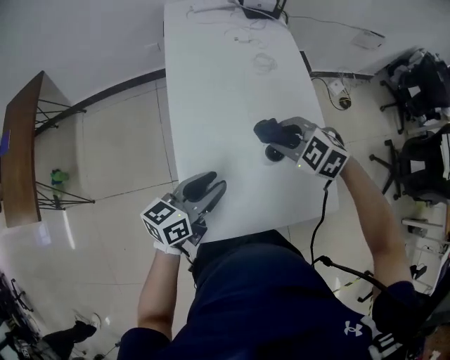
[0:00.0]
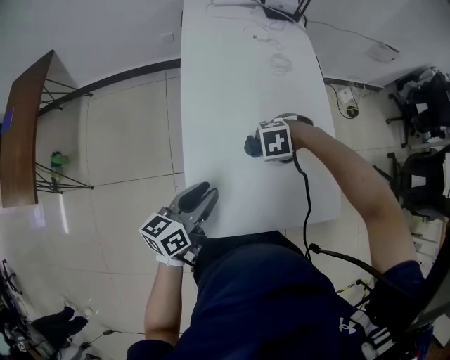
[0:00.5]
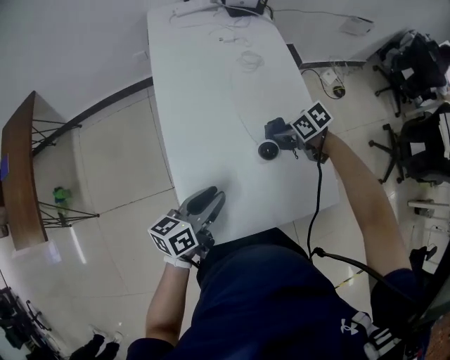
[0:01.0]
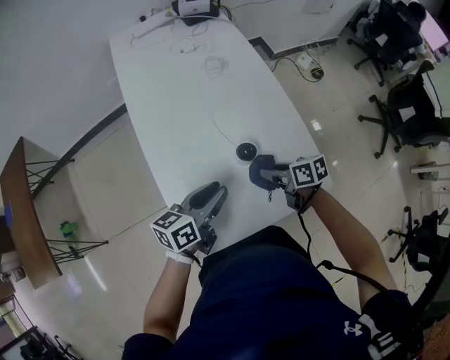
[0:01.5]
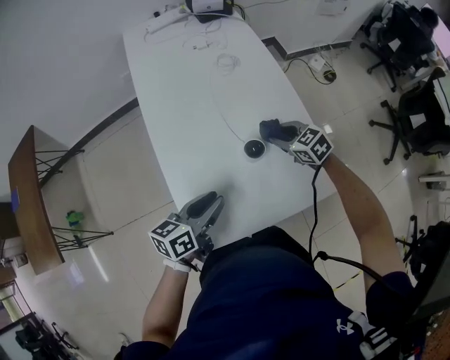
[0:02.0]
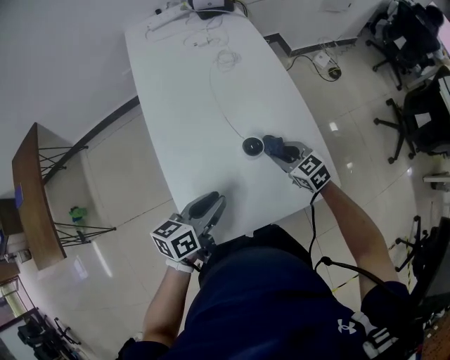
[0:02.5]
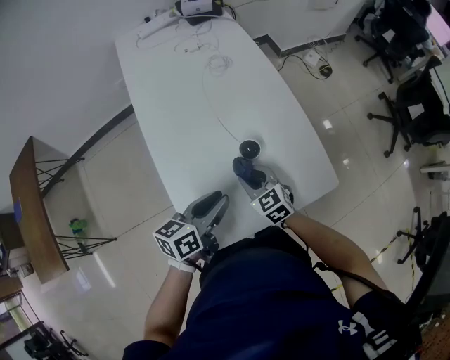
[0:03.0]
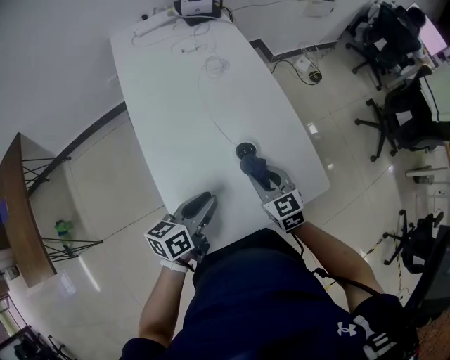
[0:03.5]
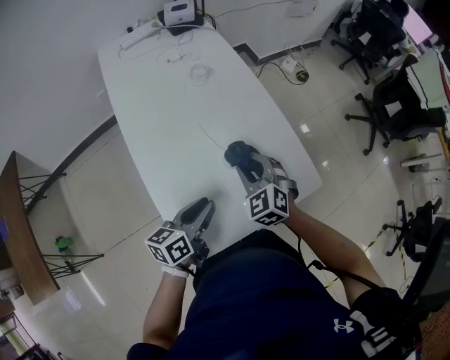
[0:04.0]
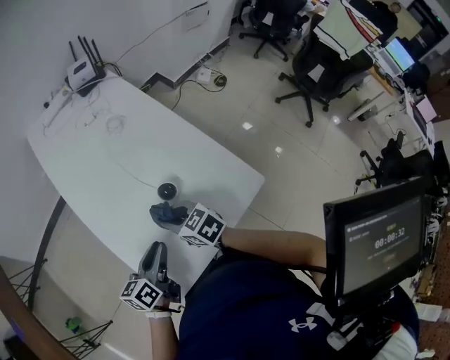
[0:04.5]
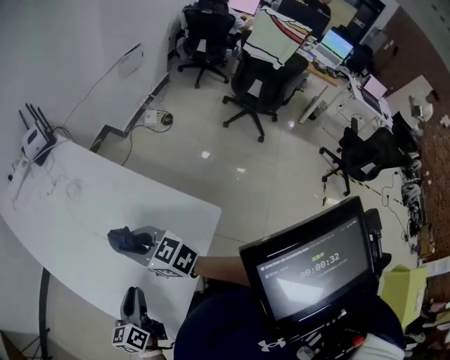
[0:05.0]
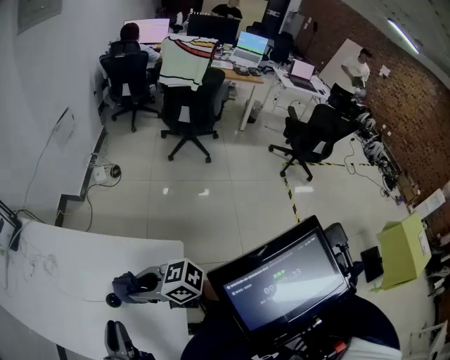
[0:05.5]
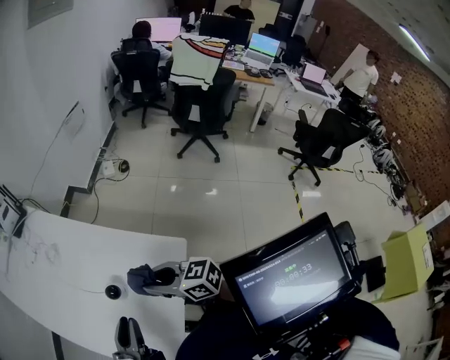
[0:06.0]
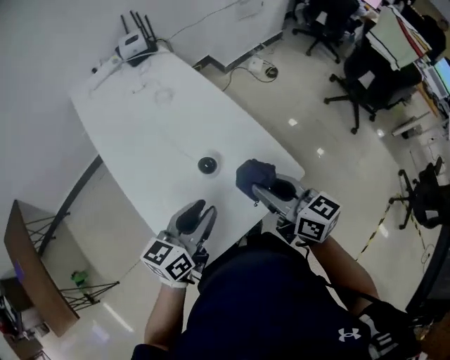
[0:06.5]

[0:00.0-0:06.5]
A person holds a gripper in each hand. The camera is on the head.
0:00.0 to 0:02.0: The right gripper goes roughly 10 cm downward, and changes its angle by roughly 40 degrees. The left gripper ends up about 5 cm from where it was.
0:02.0 to 0:04.5: The right gripper goes left and right, approximately 10 cm each way, reversing 2 times, and swivels about 20 degrees.
0:04.5 to 0:06.5: The right gripper is displaced to the right and upward by approximately 25 cm, and swivels about 30 degrees. Meanwhile the left gripper shifts about 15 cm upward and to the right, and swivels approximately 20 degrees.

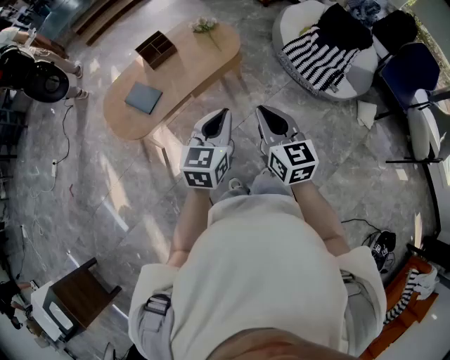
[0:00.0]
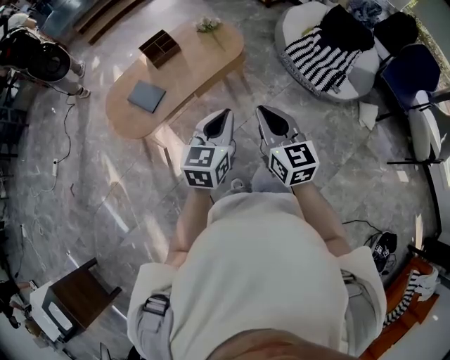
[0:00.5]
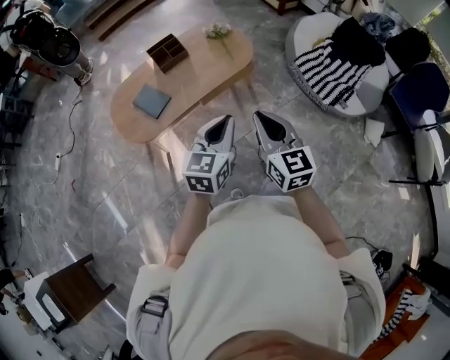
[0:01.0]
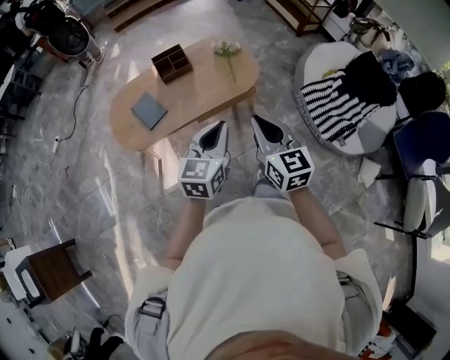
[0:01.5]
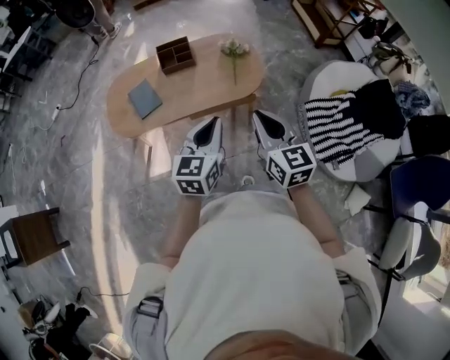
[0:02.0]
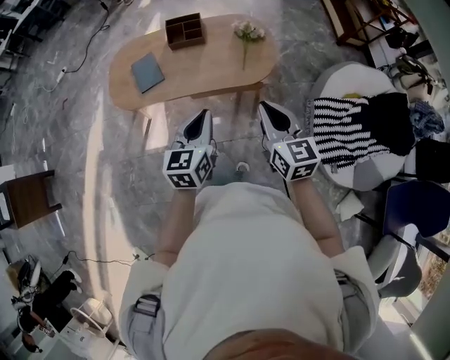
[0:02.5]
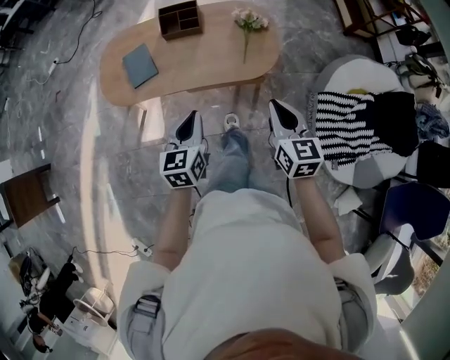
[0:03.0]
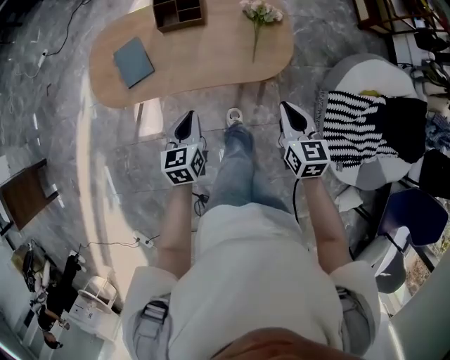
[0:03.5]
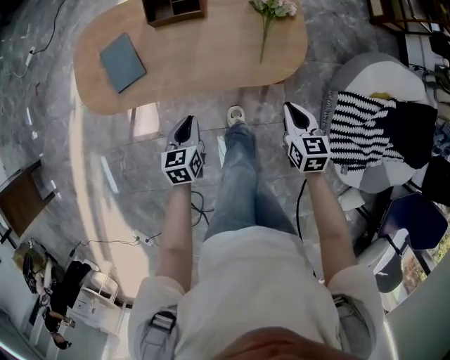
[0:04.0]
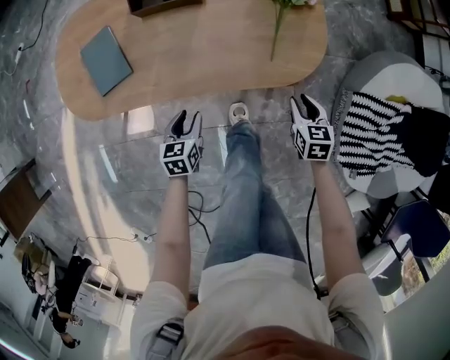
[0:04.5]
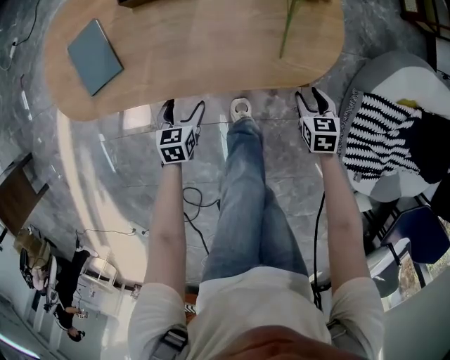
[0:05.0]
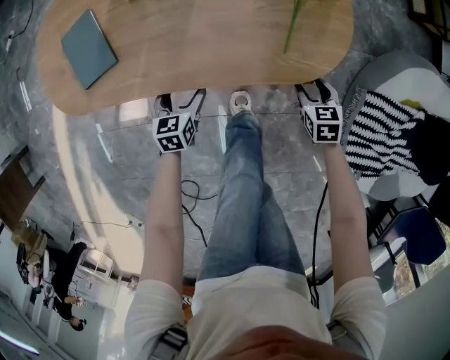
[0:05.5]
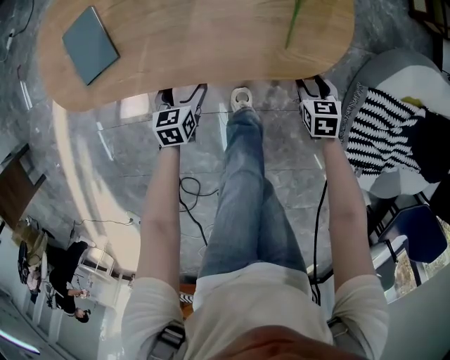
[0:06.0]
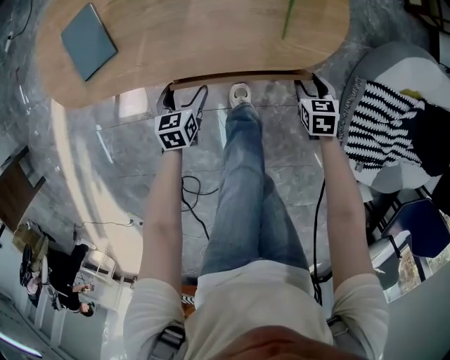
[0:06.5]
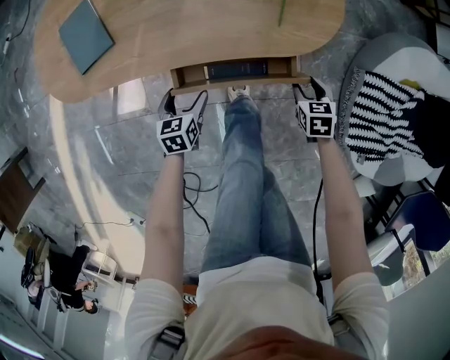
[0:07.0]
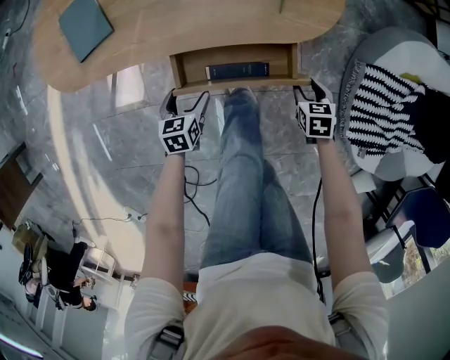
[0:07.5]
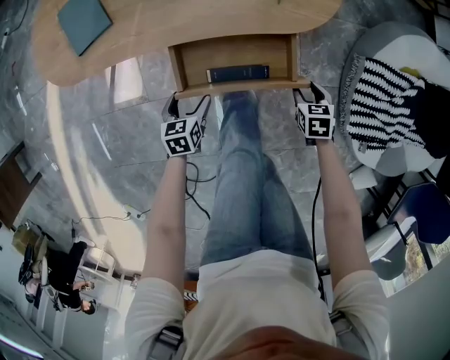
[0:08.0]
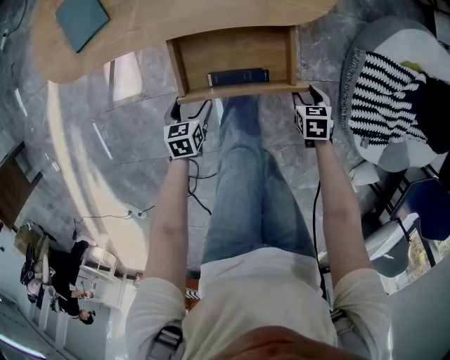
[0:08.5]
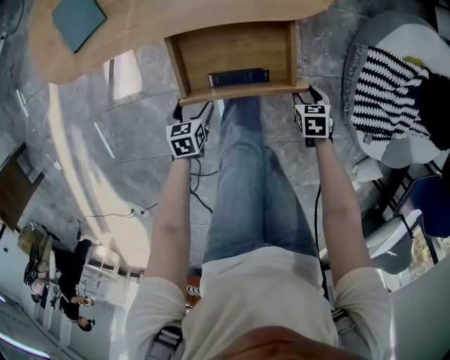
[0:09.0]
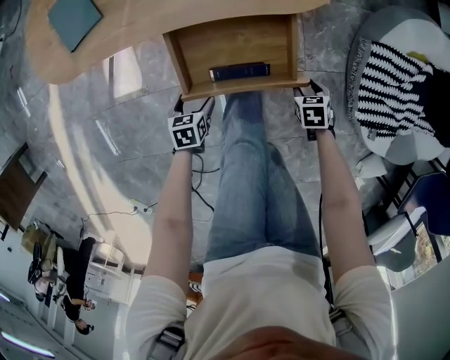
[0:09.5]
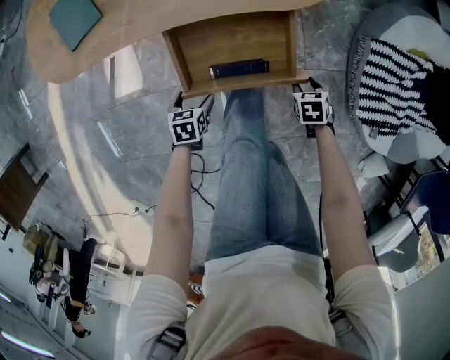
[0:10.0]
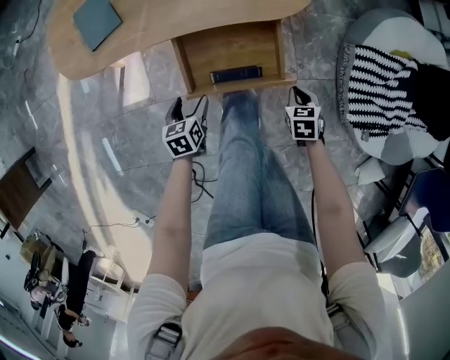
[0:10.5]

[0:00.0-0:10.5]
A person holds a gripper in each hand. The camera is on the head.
0:00.0 to 0:02.0: The left gripper ends up approximately 20 cm from where it was, and turns by roughly 30 degrees, while the right gripper moves some 25 cm, and turns by about 30 degrees.
0:02.0 to 0:04.0: Both grippers move downward and forward, about 40 cm. The right gripper rotates some 30 degrees; the left gripper turns by about 40 degrees.
0:04.0 to 0:06.5: The grippers both shift downward by some 25 cm. The right gripper turns by approximately 20 degrees, and opens its fingers, while the left gripper opens.
0:06.5 to 0:08.5: The grippers both shift backward by approximately 15 cm.
0:08.5 to 0:10.5: Both grippers move upward, approximately 5 cm. The right gripper closes its fingers.

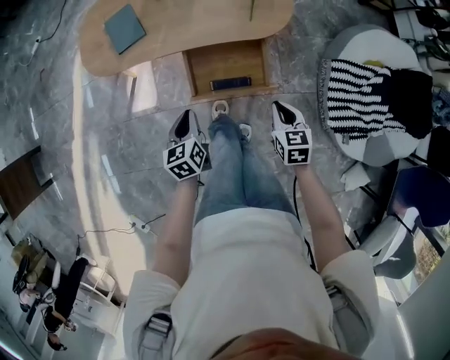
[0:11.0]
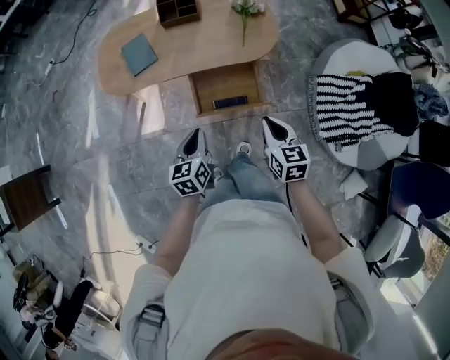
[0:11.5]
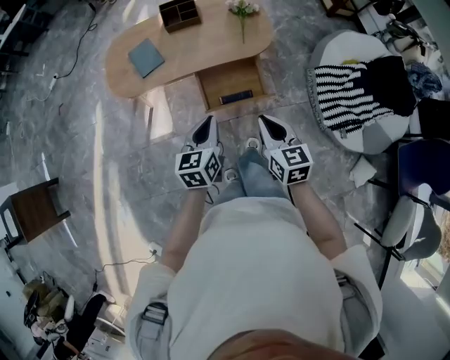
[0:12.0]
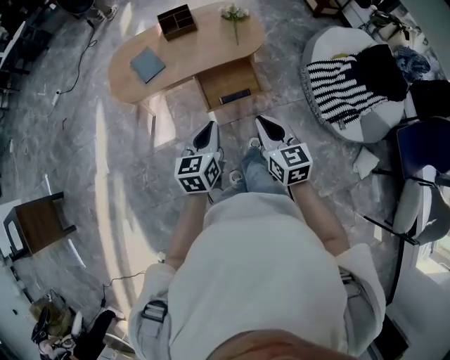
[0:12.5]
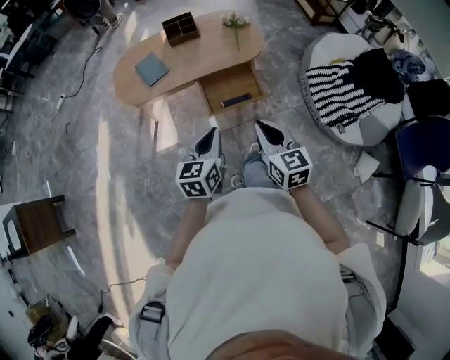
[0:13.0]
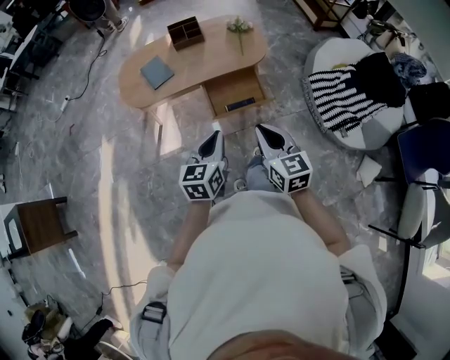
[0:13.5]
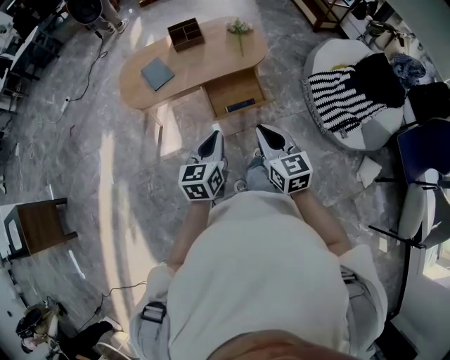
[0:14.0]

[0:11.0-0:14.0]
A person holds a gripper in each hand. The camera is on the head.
0:11.0 to 0:12.5: The left gripper heads upward and backward, covering approximately 30 cm, and swivels roughly 30 degrees. Meanwhile the right gripper is displaced upward, backward and to the left by some 35 cm, and rotates roughly 20 degrees.
0:12.5 to 0:14.0: Both grippers move backward, roughly 5 cm.

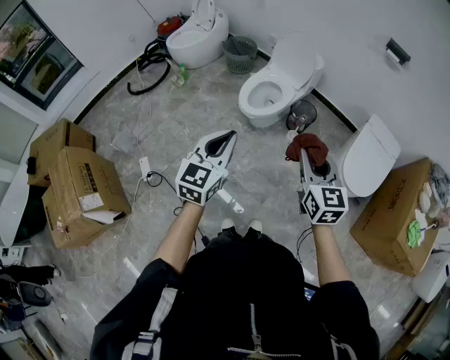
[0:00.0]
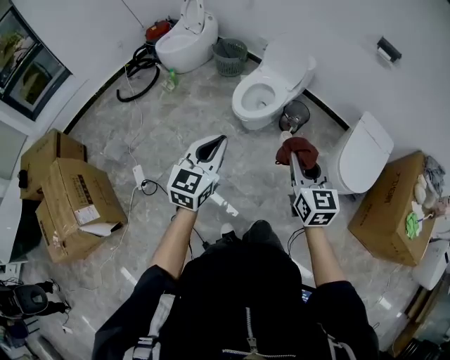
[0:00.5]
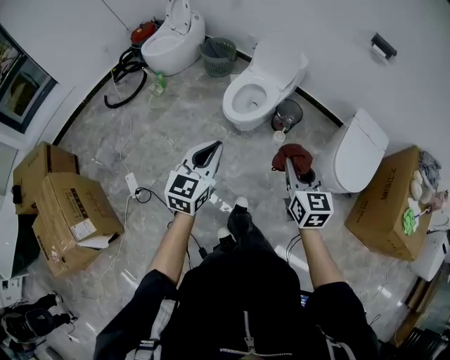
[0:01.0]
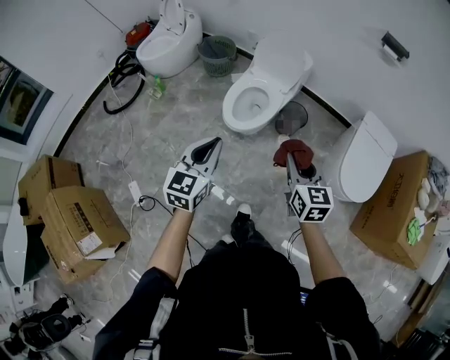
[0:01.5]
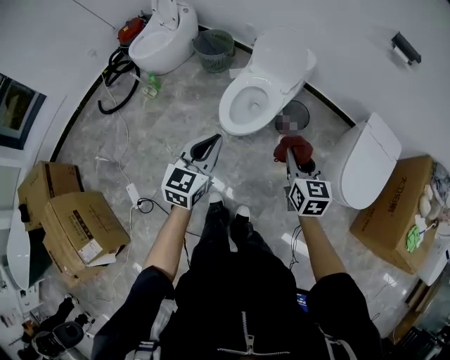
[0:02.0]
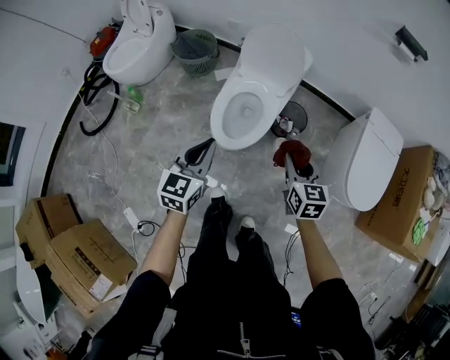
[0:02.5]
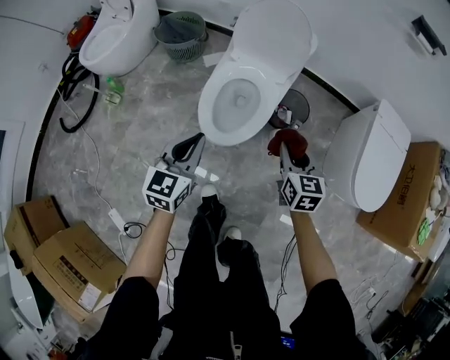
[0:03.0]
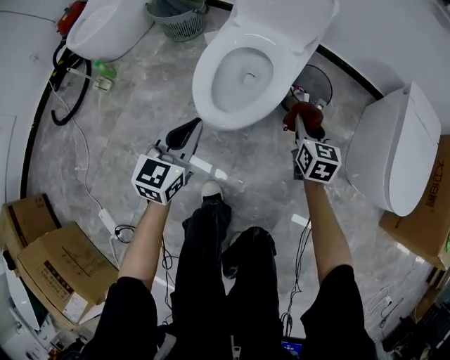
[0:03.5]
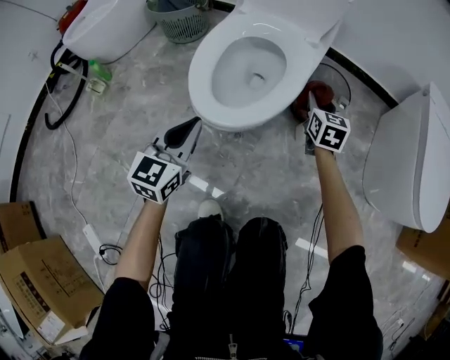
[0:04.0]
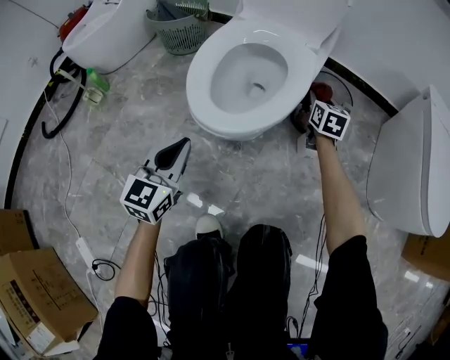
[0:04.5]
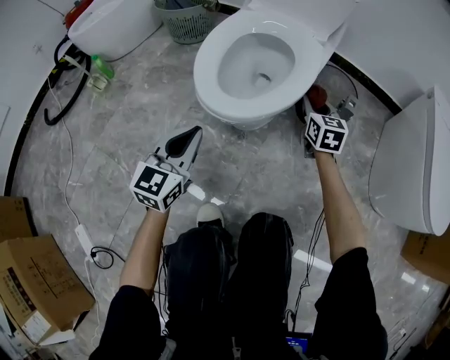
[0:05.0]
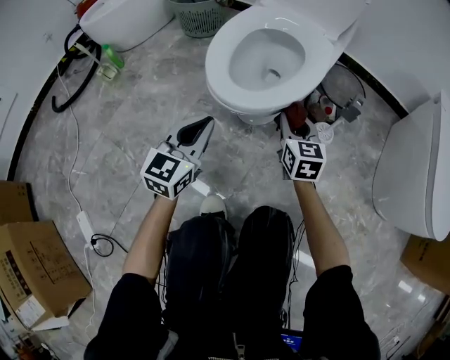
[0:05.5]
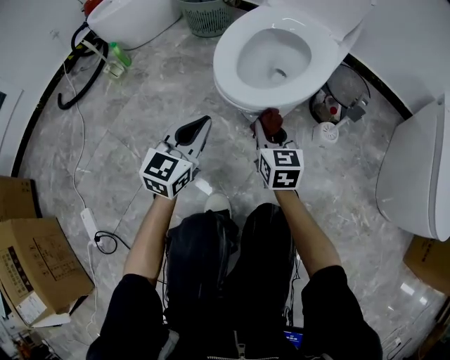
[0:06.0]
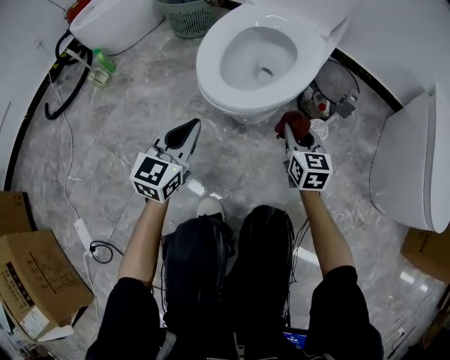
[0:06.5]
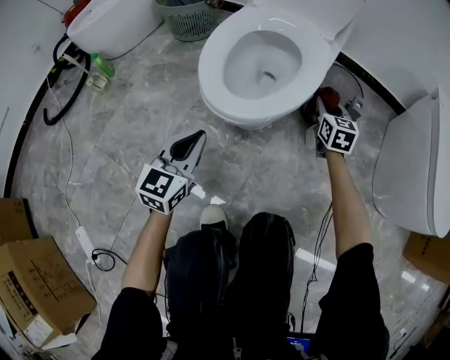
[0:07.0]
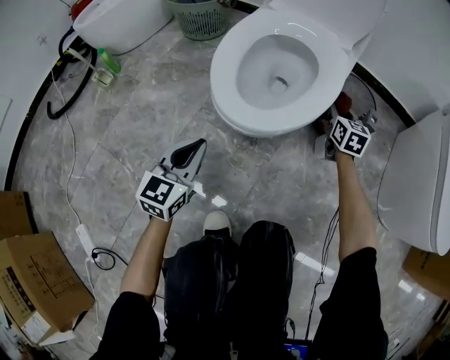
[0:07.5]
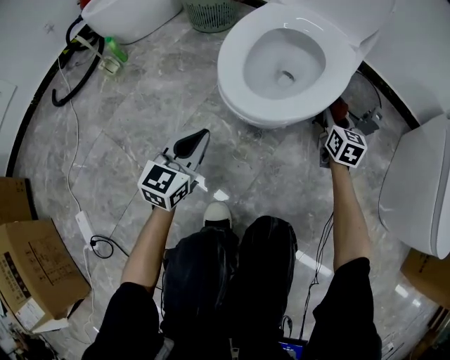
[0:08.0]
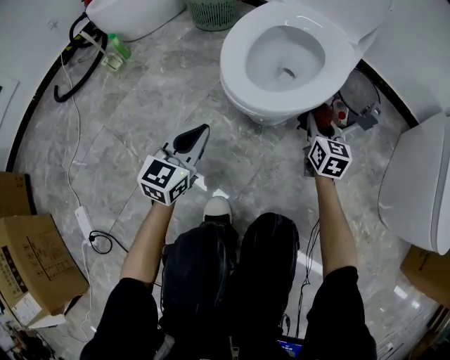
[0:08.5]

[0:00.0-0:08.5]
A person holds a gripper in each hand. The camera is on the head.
0:00.0 to 0:02.0: The left gripper shifts about 25 cm forward. Meanwhile the right gripper heads forward and downward, covering roughly 30 cm.
0:02.0 to 0:04.0: The right gripper travels downward and forward by approximately 60 cm. The left gripper travels downward by some 50 cm.
0:04.0 to 0:06.5: The left gripper shifts roughly 5 cm downward, while the right gripper goes forward and backward, about 25 cm each way, reversing 2 times.
0:06.5 to 0:08.5: The left gripper ends up roughly 5 cm from where it was; the right gripper goes roughly 5 cm forward.
